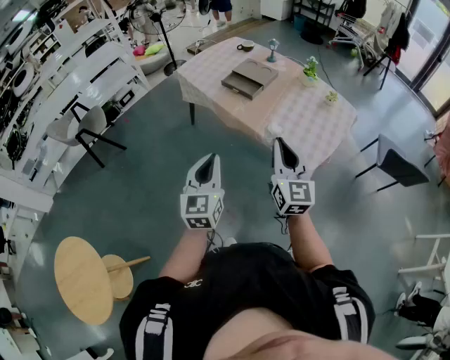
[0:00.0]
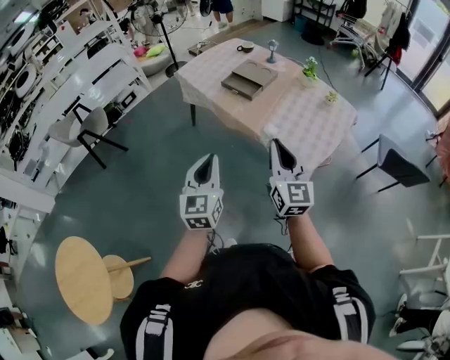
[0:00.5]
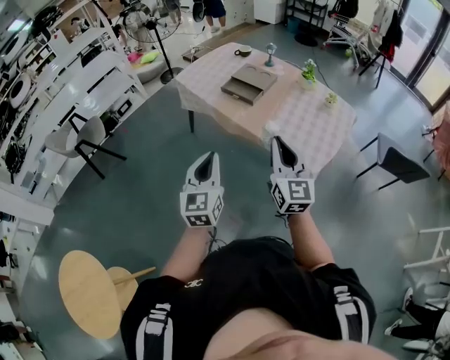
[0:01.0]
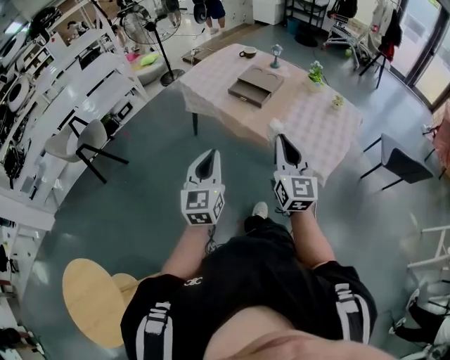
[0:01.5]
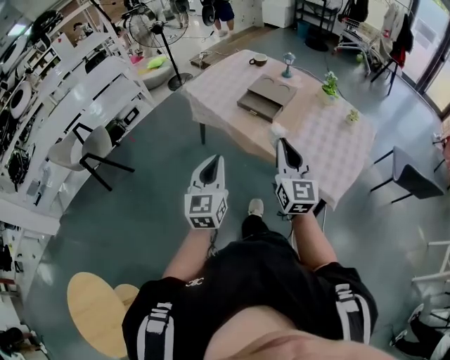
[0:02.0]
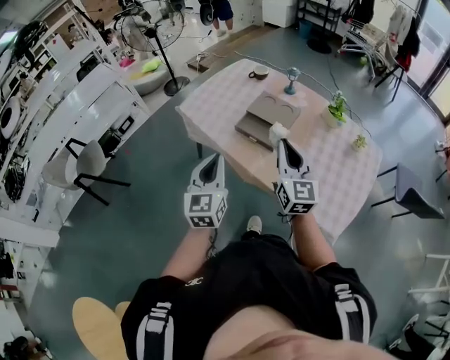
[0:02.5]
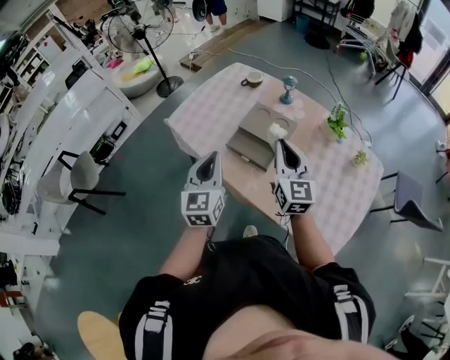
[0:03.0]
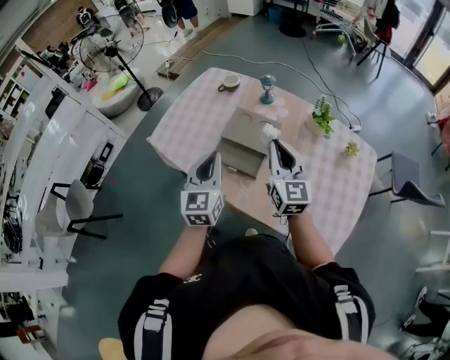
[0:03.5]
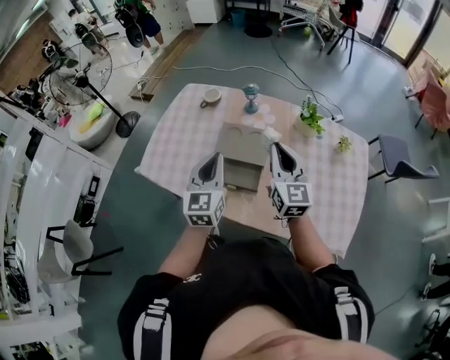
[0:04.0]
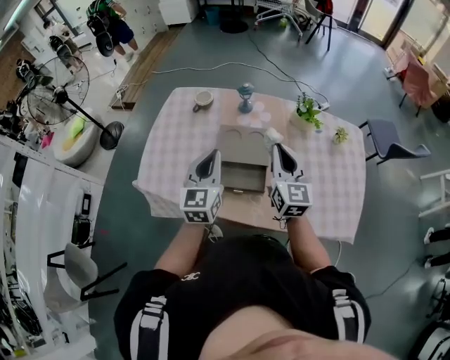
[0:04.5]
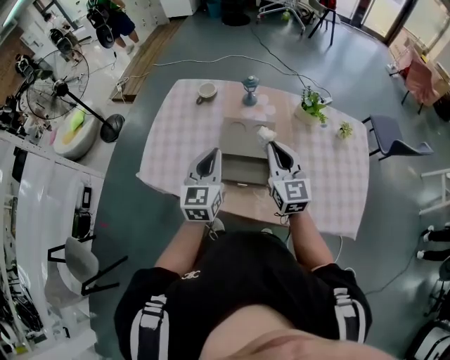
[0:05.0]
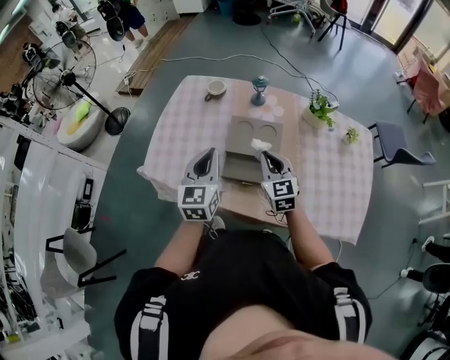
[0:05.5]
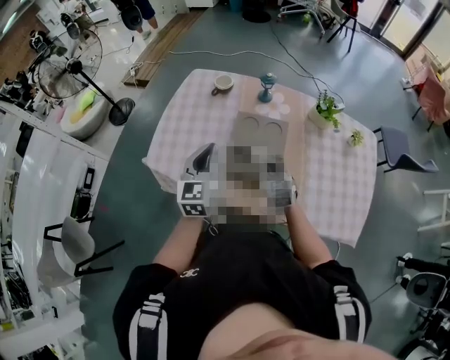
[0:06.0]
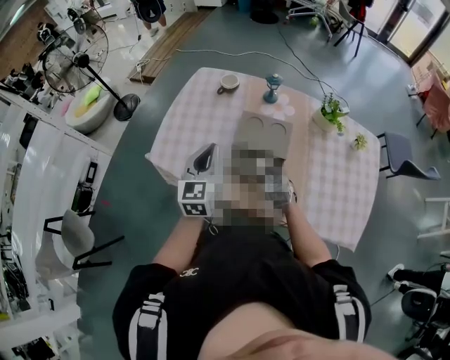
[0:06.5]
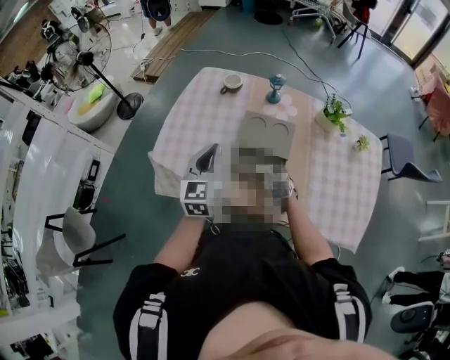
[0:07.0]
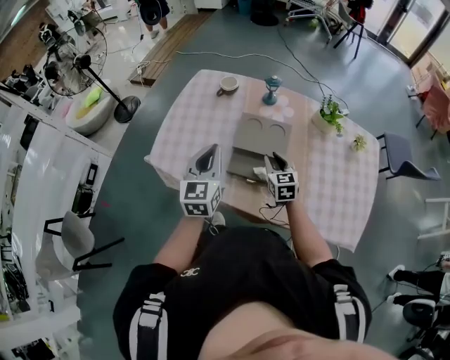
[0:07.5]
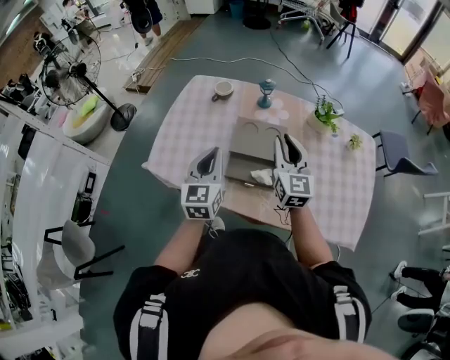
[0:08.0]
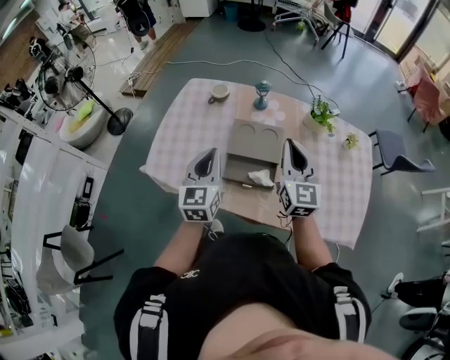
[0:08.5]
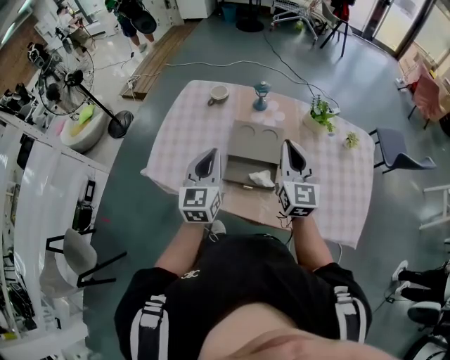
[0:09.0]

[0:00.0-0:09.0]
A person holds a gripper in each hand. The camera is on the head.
0:00.0 to 0:02.0: The grippers both shift forward and to the left by approximately 20 cm.
0:02.0 to 0:04.5: The pair of grippers is taken some 50 cm. The right gripper swivels approximately 30 degrees; the left gripper turns by about 30 degrees.
0:04.5 to 0:07.0: The left gripper travels to the left by approximately 10 cm. The right gripper moves downward, roughly 30 cm, and tilts its fingers some 50 degrees downward.
0:07.0 to 0:09.0: The right gripper goes approximately 30 cm upward, and angles its fingers upward, by about 50 degrees.

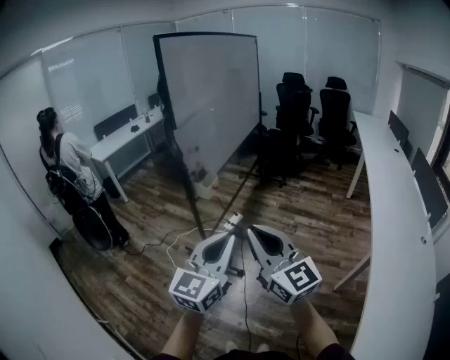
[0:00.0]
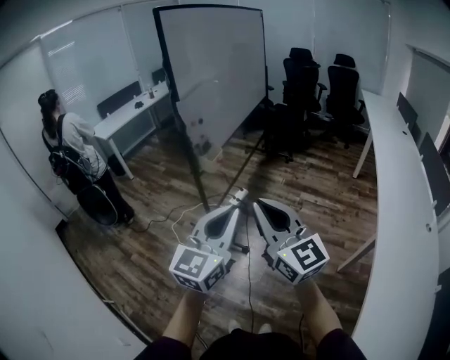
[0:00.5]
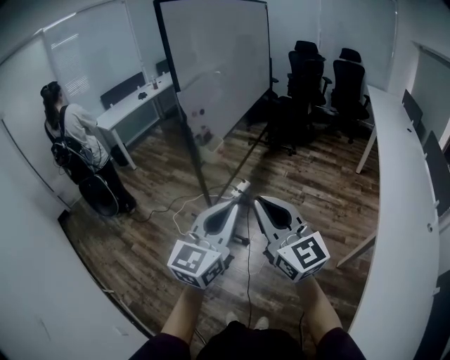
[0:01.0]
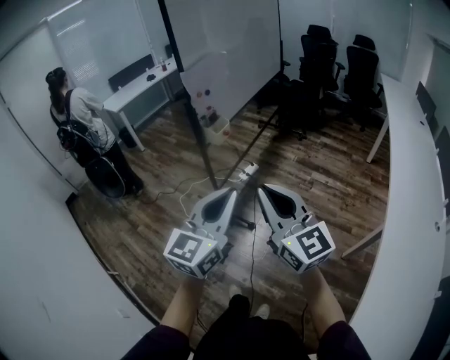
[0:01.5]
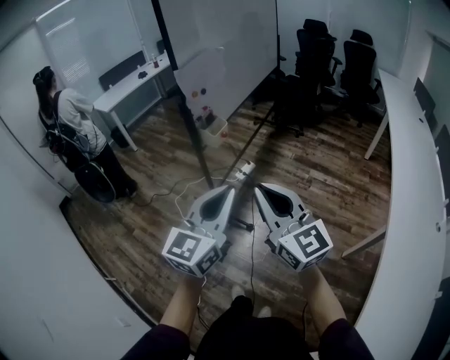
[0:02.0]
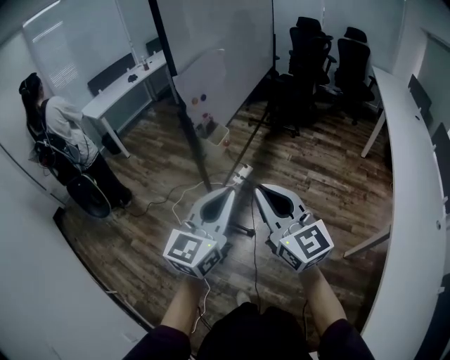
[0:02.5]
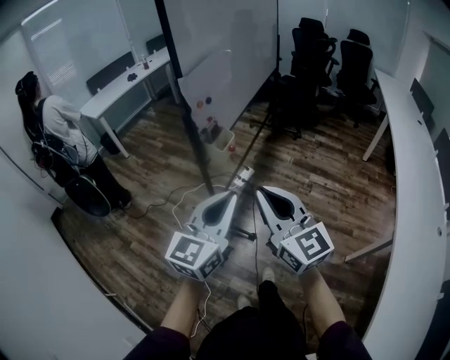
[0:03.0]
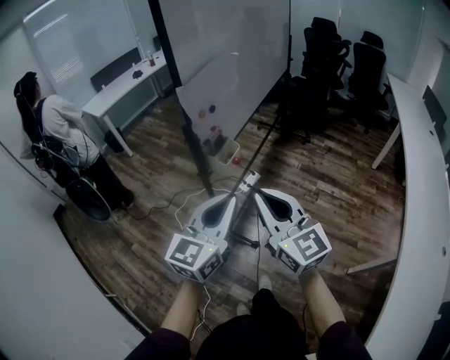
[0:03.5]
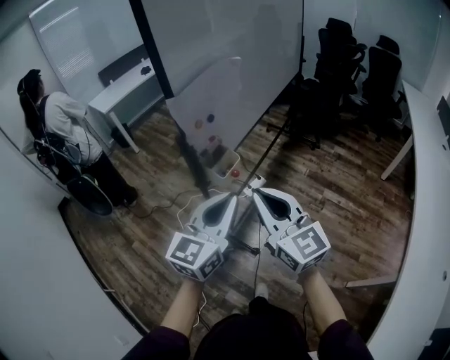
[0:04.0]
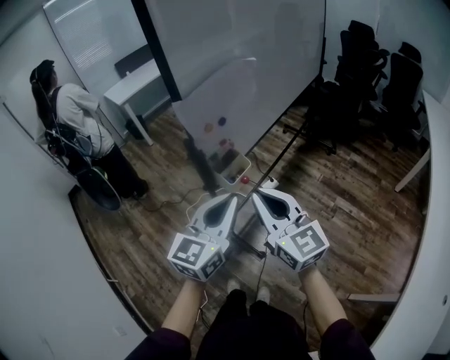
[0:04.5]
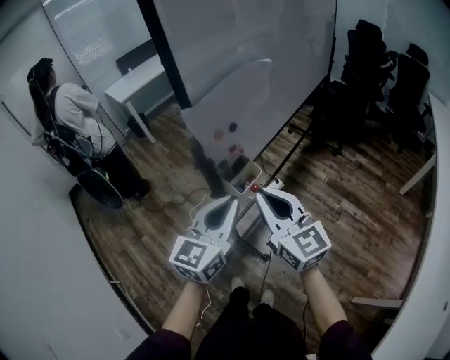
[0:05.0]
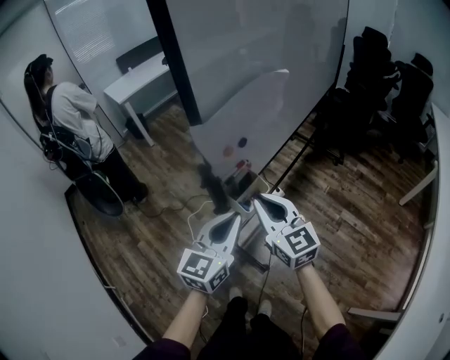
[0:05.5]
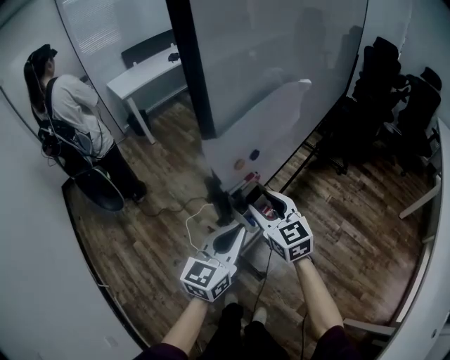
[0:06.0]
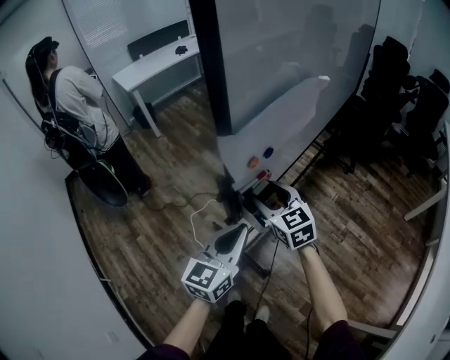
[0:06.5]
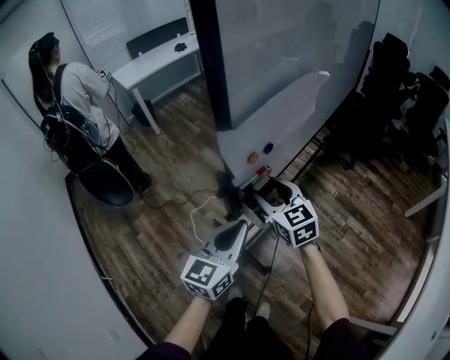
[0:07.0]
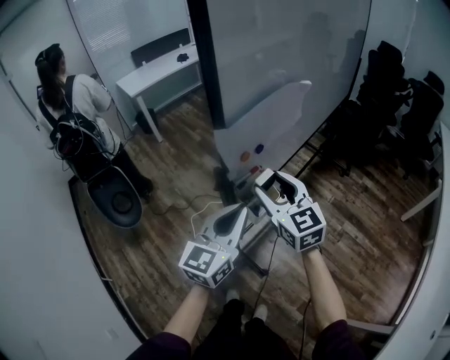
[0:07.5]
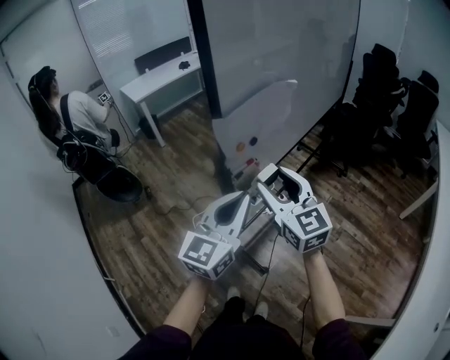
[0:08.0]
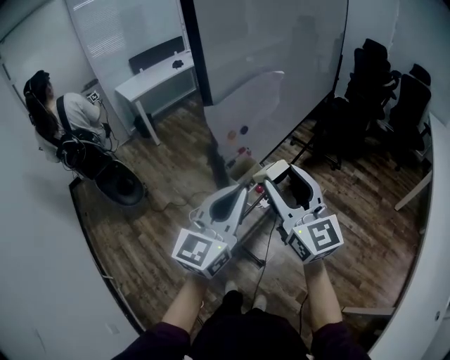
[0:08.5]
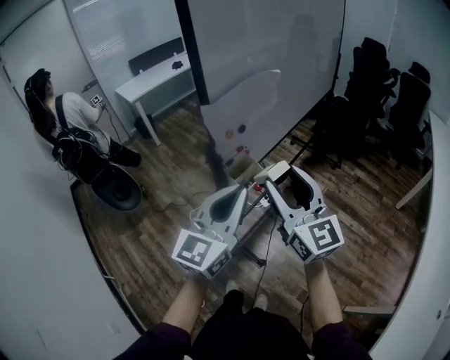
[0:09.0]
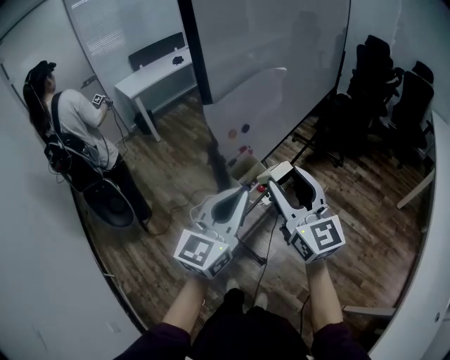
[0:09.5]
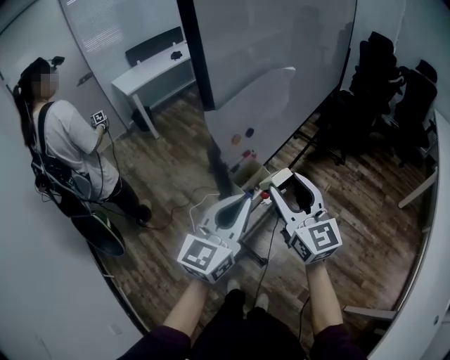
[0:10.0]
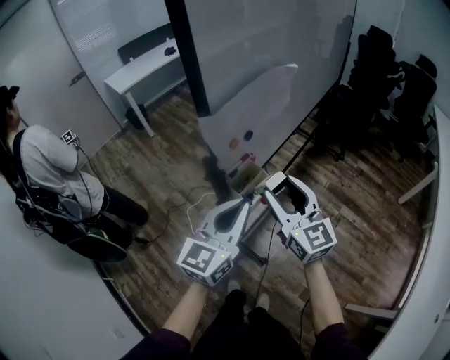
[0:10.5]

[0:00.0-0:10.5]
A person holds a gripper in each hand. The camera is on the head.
0:00.0 to 0:02.0: The right gripper is displaced forward and downward by some 10 cm. Meanwhile the left gripper heads forward, covering roughly 10 cm.
0:02.0 to 0:04.0: The grippers both shift forward by about 30 cm.
0:04.0 to 0:06.5: The left gripper moves forward, downward and to the left, approximately 25 cm, while the right gripper goes some 35 cm forward and downward, changes its angle by some 30 degrees, and opens.
0:06.5 to 0:08.5: The grippers both shift upward and backward by roughly 25 cm. The right gripper tips its fingers upward by roughly 30 degrees.
0:08.5 to 0:10.5: The two grippers go approximately 15 cm downward and forward.

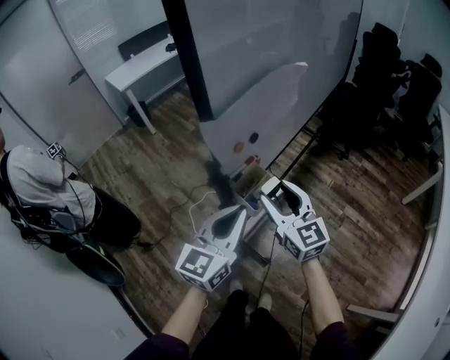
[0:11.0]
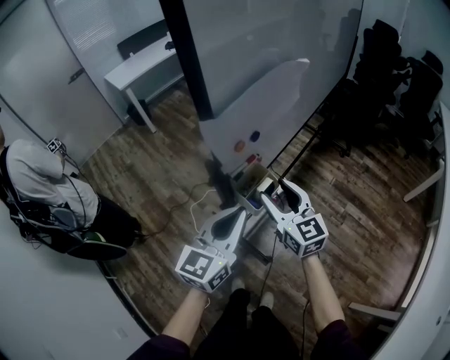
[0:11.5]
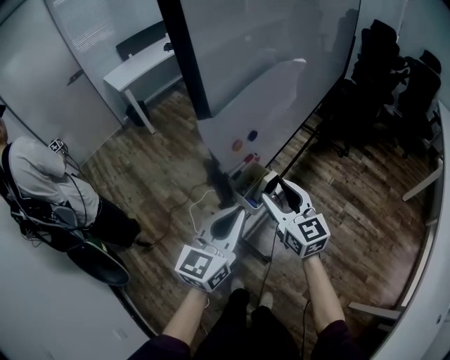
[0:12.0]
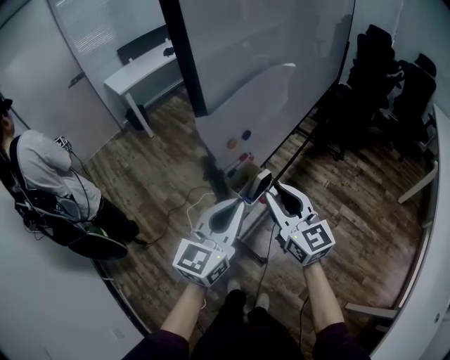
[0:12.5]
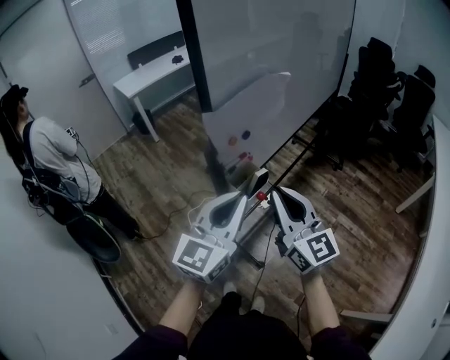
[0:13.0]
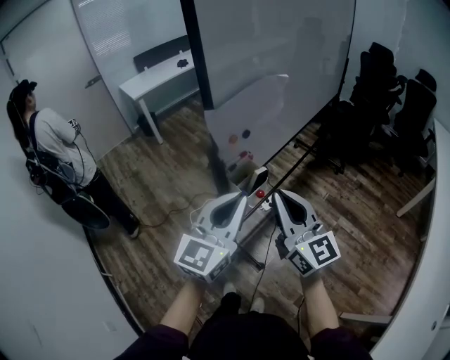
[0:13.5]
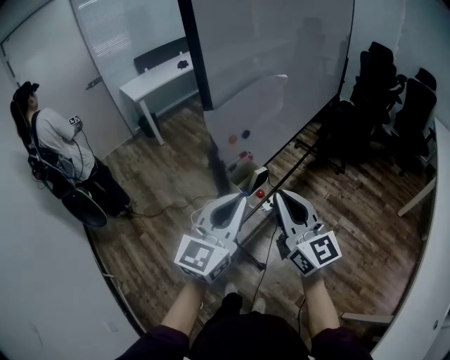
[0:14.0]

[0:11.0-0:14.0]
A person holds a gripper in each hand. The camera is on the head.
0:11.0 to 0:12.5: The right gripper ends up about 5 cm from where it was, and closes.
0:12.5 to 0:14.0: Both grippers travel together backward and upward, roughly 10 cm. The right gripper closes up.

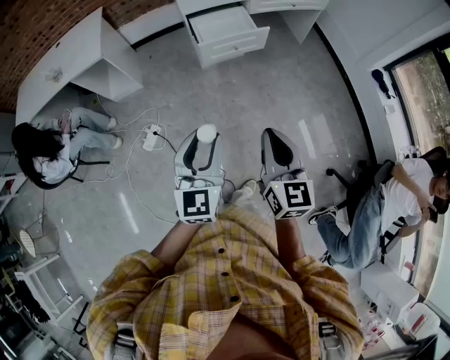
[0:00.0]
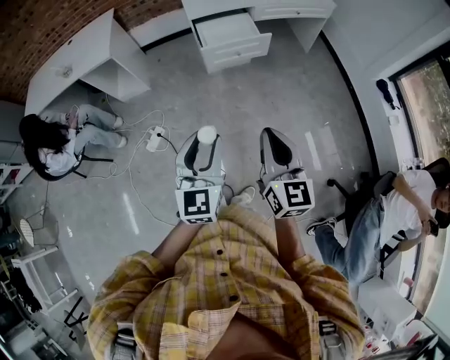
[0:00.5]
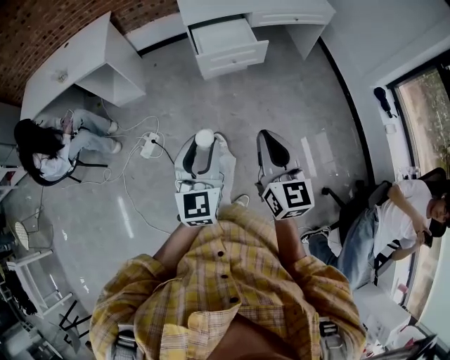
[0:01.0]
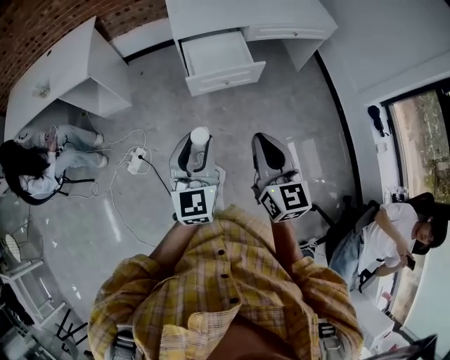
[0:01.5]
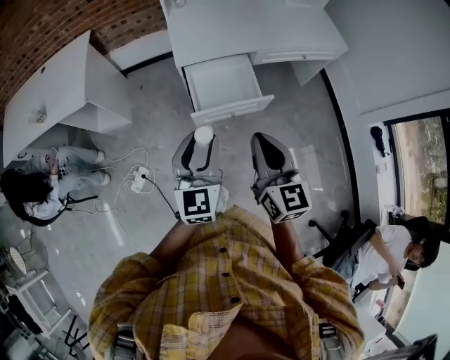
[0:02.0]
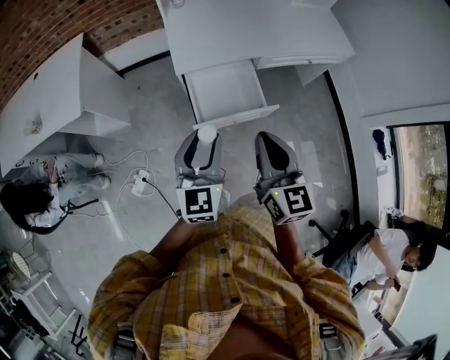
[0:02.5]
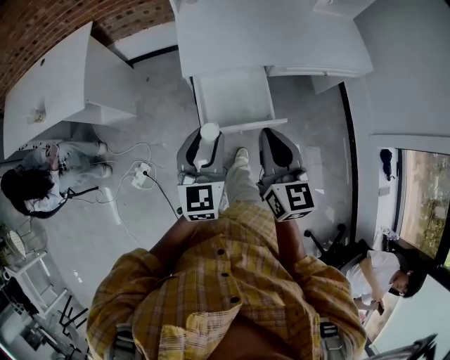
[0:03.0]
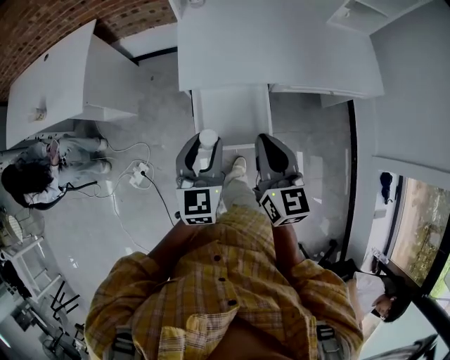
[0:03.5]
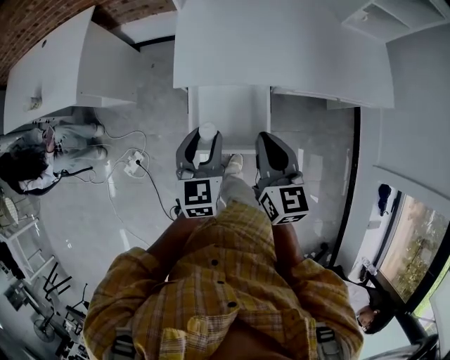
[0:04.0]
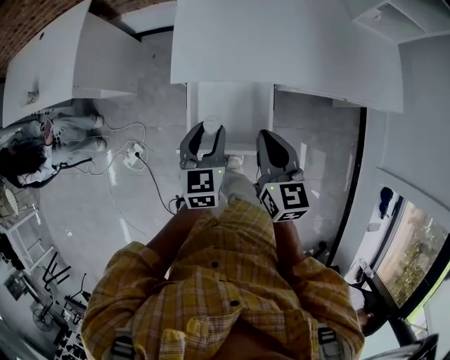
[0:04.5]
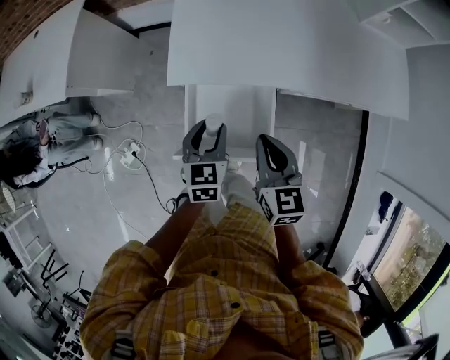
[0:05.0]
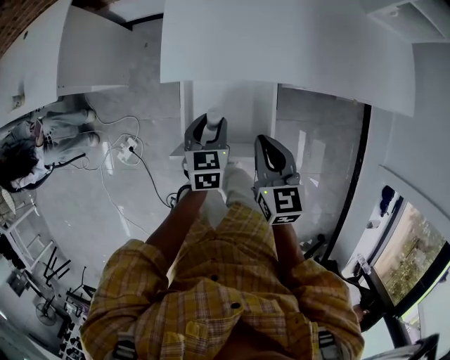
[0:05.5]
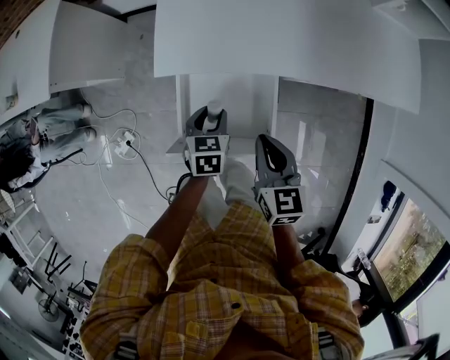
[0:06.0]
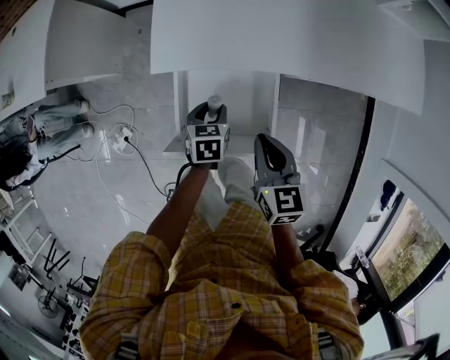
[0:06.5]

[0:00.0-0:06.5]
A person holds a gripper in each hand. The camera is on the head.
0:00.0 to 0:02.0: The two grippers go roughly 40 cm forward.
0:02.0 to 0:04.5: Both grippers travel together forward and downward, roughly 35 cm. The left gripper rotates some 30 degrees. Meanwhile the right gripper swivels about 20 degrees.
0:04.5 to 0:06.5: The right gripper is displaced downward by roughly 15 cm. Meanwhile the left gripper travels downward by about 25 cm, and swivels about 30 degrees.
